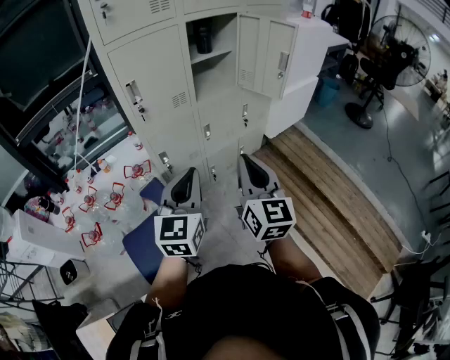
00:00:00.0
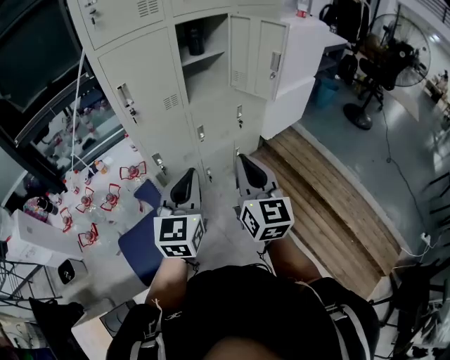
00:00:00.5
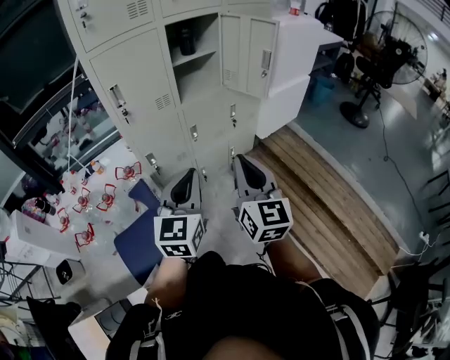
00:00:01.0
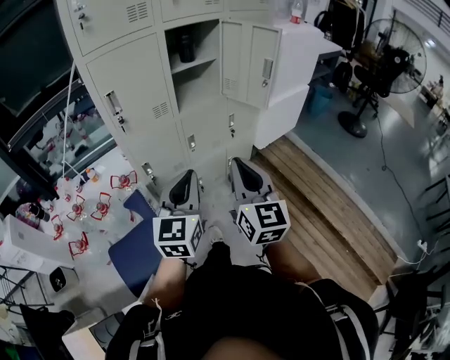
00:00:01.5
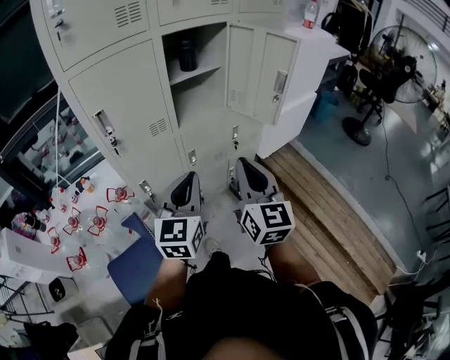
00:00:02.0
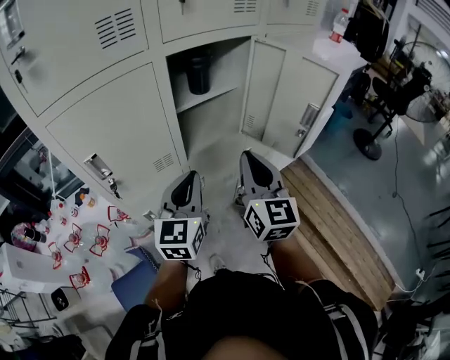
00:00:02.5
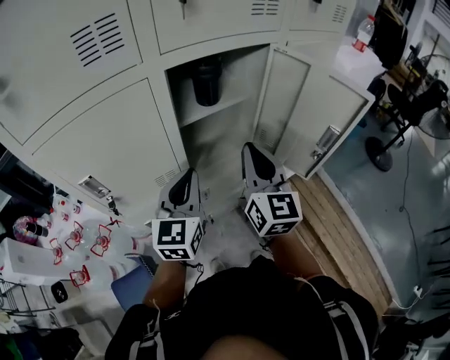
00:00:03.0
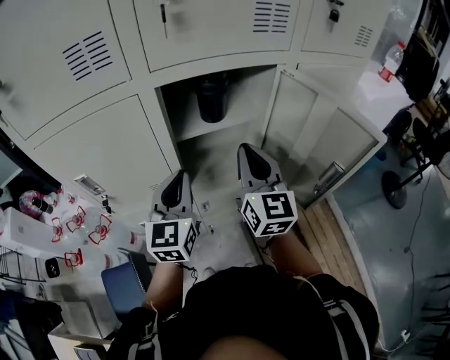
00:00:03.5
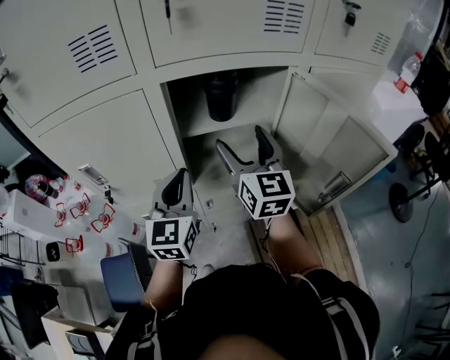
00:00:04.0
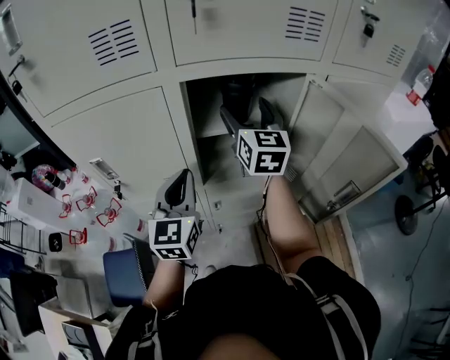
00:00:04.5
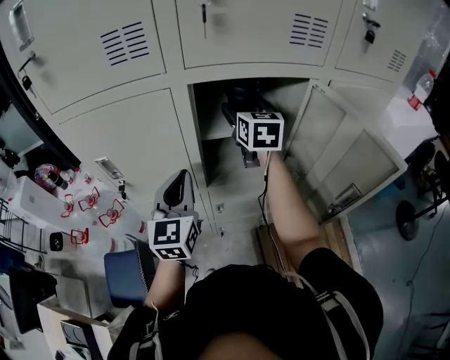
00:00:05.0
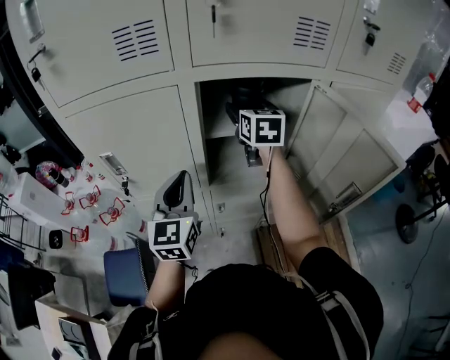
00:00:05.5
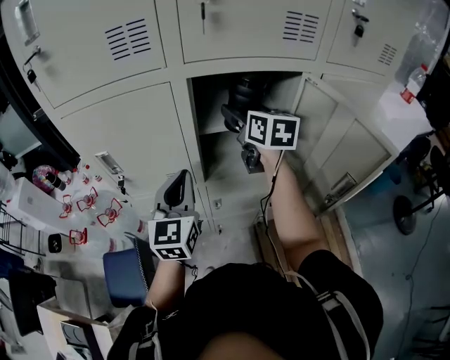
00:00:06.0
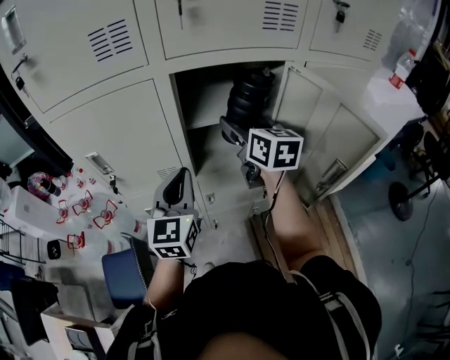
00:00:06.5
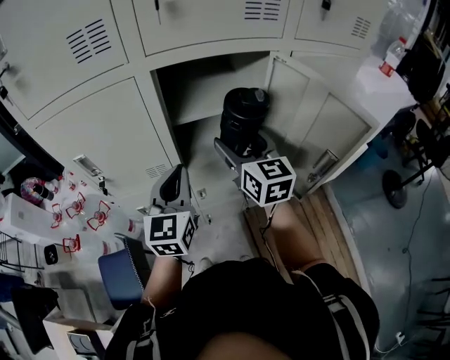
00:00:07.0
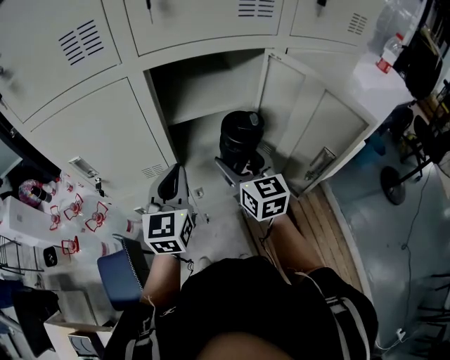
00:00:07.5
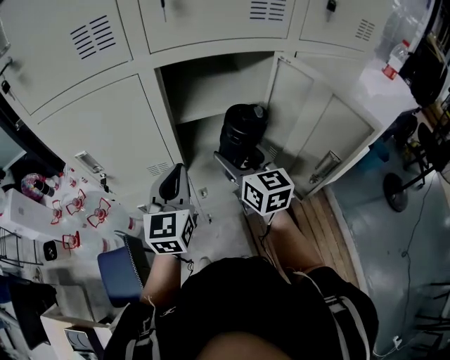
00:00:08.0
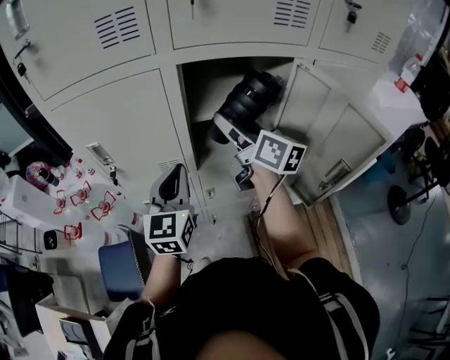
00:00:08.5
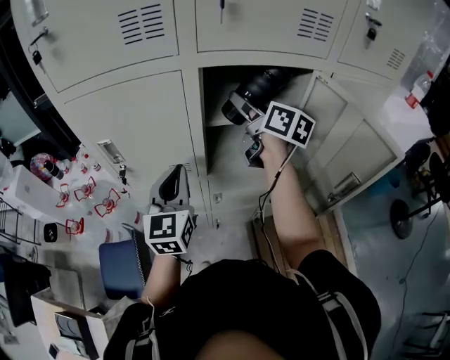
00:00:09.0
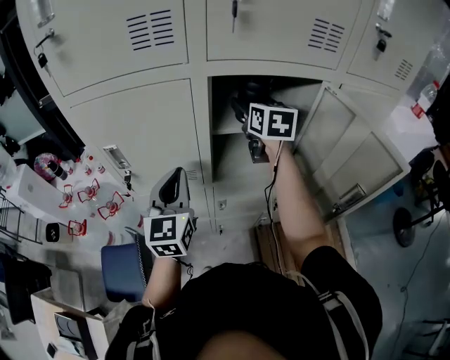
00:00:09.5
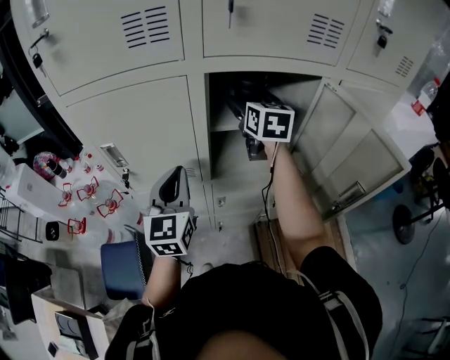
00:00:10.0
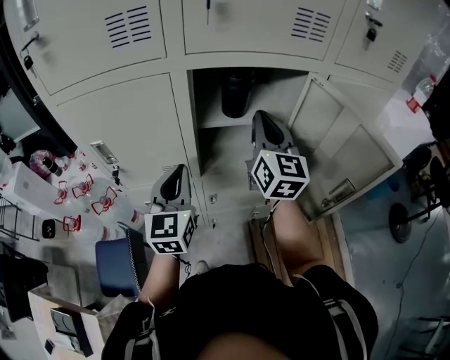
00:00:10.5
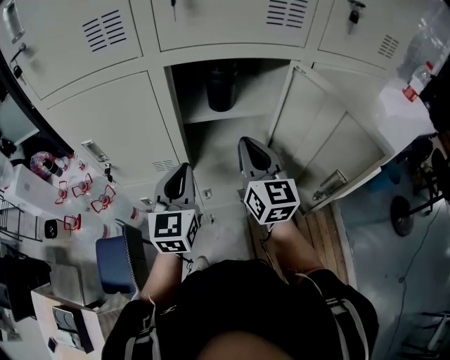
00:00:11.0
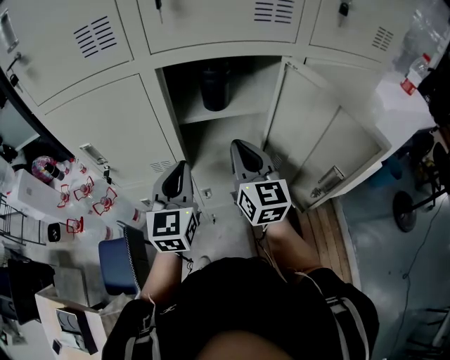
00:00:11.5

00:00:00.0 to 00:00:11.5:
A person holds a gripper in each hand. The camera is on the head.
00:00:00.0 to 00:00:02.0: Both grippers move forward, some 20 cm.
00:00:02.0 to 00:00:04.0: The grippers both shift forward by roughly 35 cm. The right gripper rotates about 20 degrees, and opens. Meanwhile the left gripper turns by about 20 degrees.
00:00:04.0 to 00:00:06.0: The right gripper heads forward, covering approximately 10 cm, and swivels about 20 degrees.
00:00:06.0 to 00:00:07.5: The left gripper goes some 5 cm to the right. Meanwhile the right gripper shifts approximately 15 cm backward and downward.
00:00:07.5 to 00:00:09.5: The right gripper heads forward and upward, covering approximately 20 cm. Meanwhile the left gripper travels to the left by about 10 cm.
00:00:09.5 to 00:00:11.5: The left gripper heads to the right, covering roughly 10 cm. Meanwhile the right gripper is displaced backward by some 20 cm, and closes up.

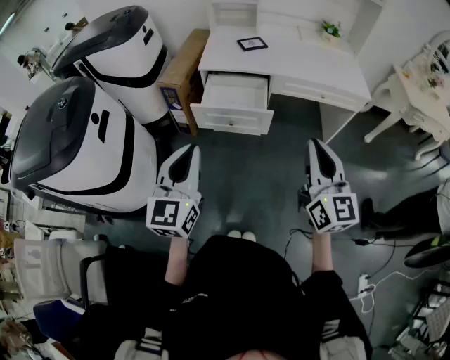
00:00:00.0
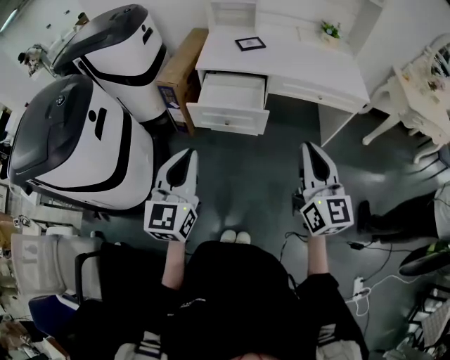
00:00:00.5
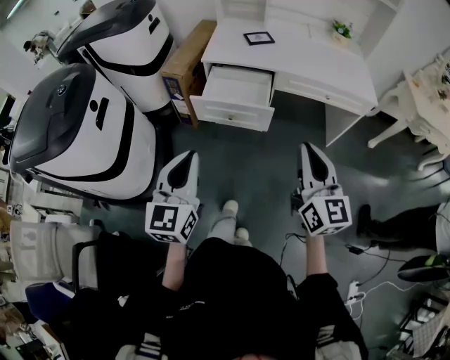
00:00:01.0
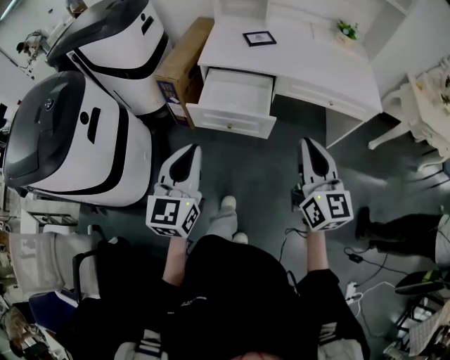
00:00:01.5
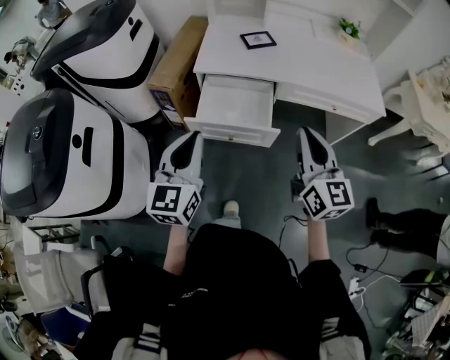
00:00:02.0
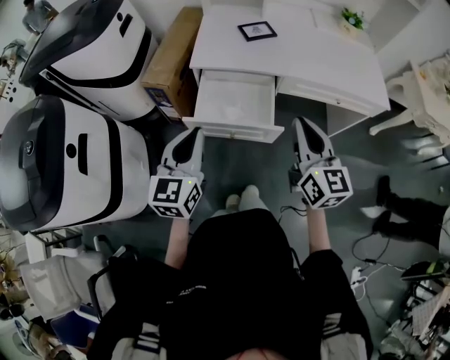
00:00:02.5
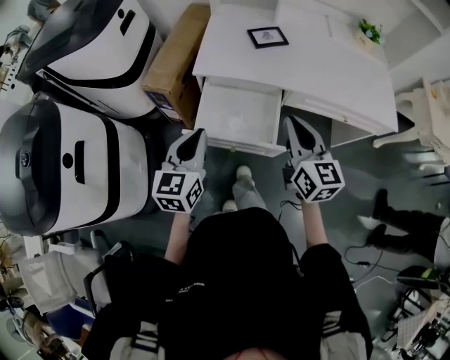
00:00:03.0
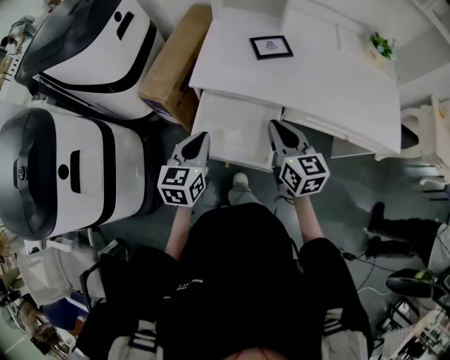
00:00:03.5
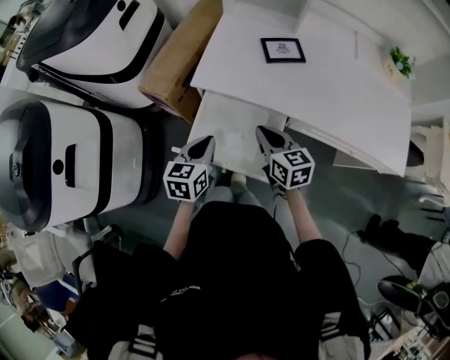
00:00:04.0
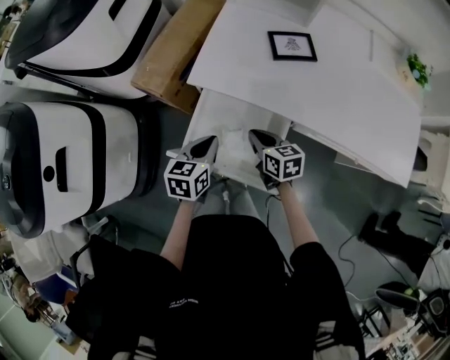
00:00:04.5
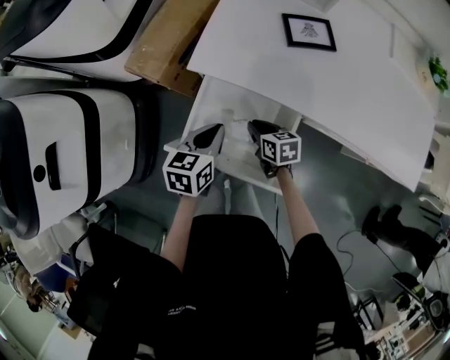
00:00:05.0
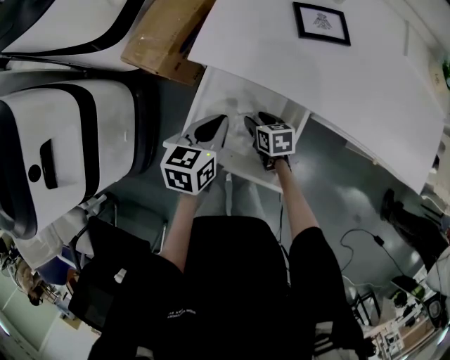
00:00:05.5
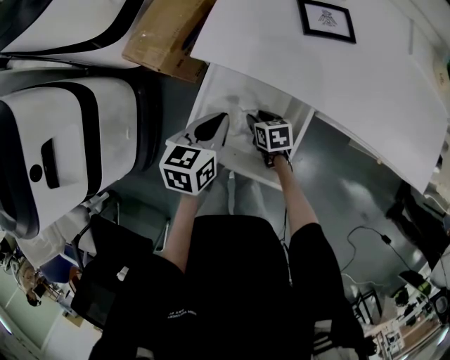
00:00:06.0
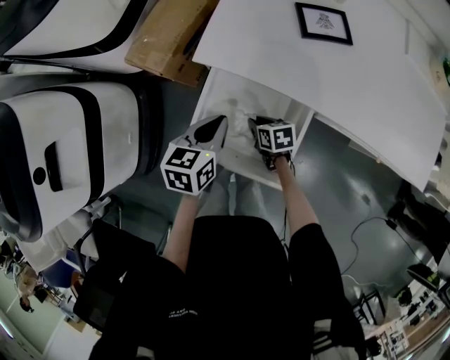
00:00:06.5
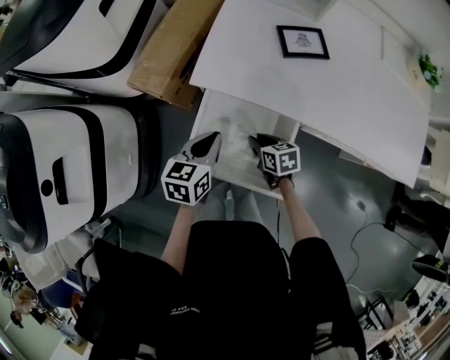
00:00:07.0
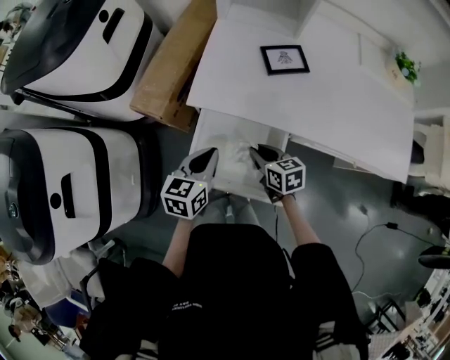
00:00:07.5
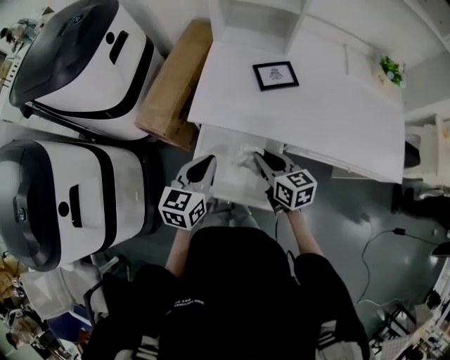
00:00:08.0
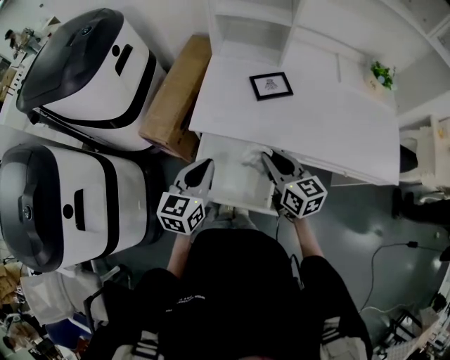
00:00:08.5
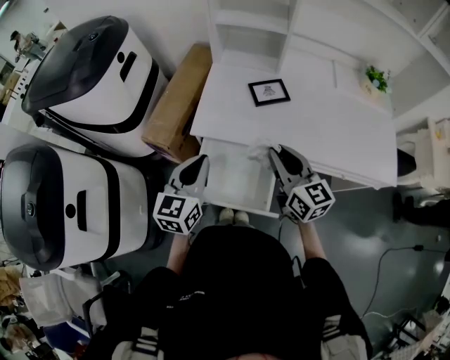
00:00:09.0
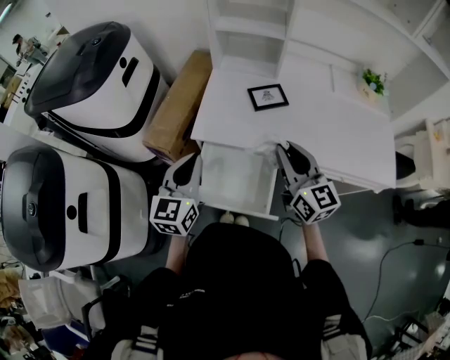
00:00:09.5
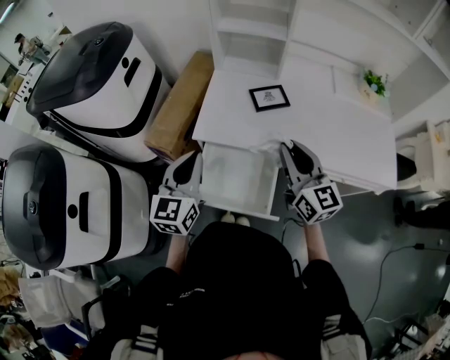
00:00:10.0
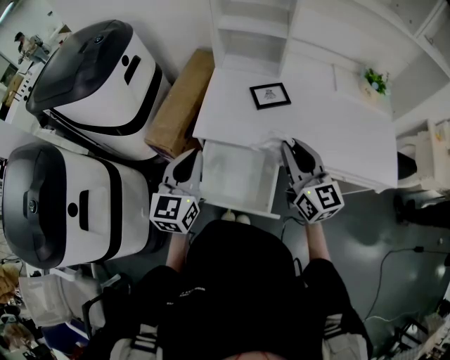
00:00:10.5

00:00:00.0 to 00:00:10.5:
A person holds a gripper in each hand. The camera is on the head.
00:00:00.0 to 00:00:02.0: The two grippers go approximately 20 cm forward.
00:00:02.0 to 00:00:04.0: The grippers both shift forward and downward by about 35 cm. The right gripper turns by roughly 40 degrees. The left gripper turns by about 30 degrees.
00:00:04.0 to 00:00:06.5: The left gripper heads downward and forward, covering some 10 cm, while the right gripper heads downward, covering some 25 cm, swivels approximately 30 degrees, and opens, then closes again.
00:00:06.5 to 00:00:08.5: The left gripper heads upward, covering about 20 cm, and swivels roughly 20 degrees. Meanwhile the right gripper travels upward by roughly 35 cm, and tips its fingers upward by some 40 degrees.
00:00:08.5 to 00:00:10.5: Both grippers travel together upward, some 10 cm. The right gripper turns by approximately 20 degrees.
